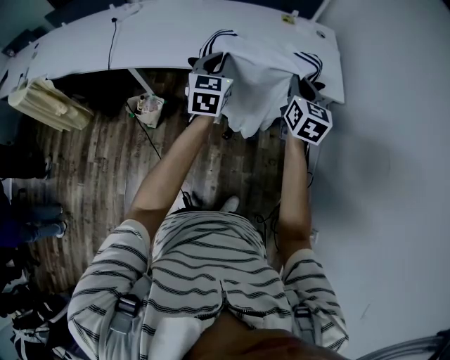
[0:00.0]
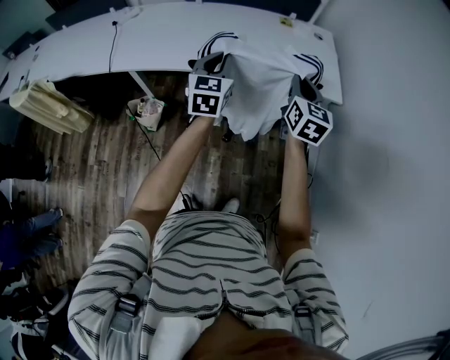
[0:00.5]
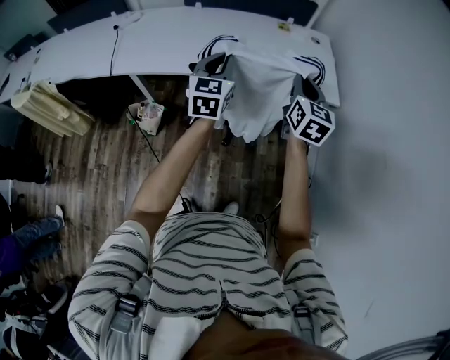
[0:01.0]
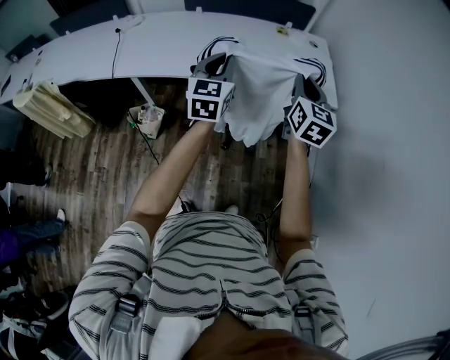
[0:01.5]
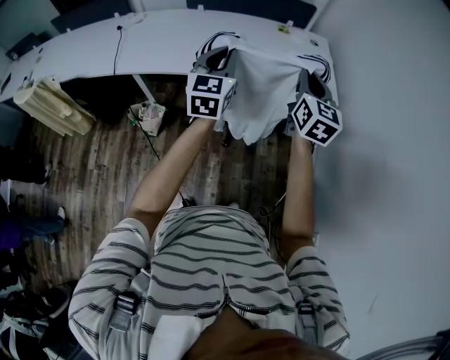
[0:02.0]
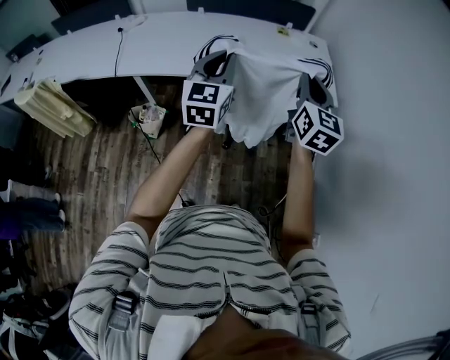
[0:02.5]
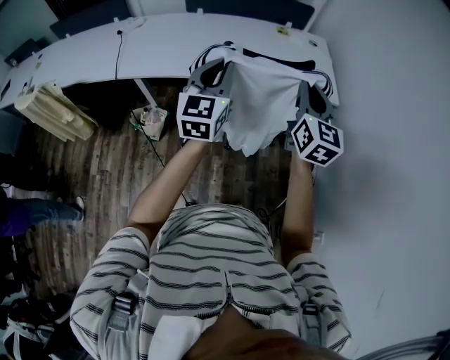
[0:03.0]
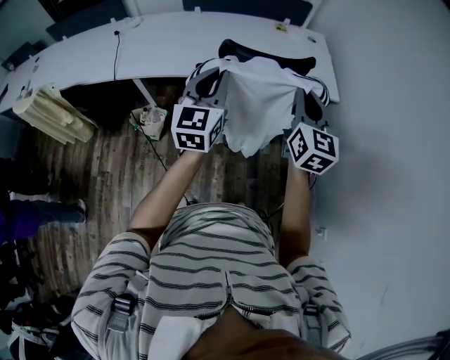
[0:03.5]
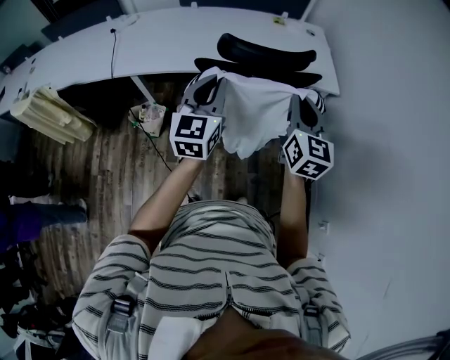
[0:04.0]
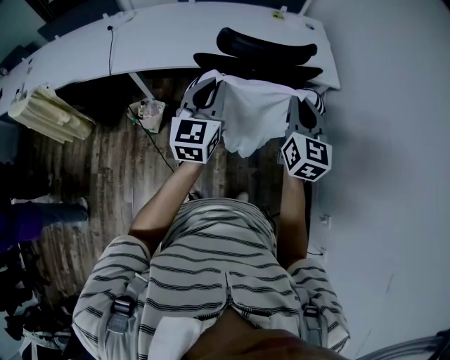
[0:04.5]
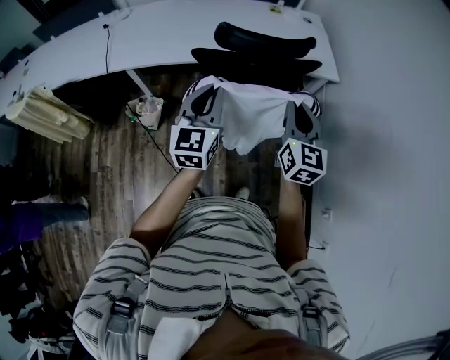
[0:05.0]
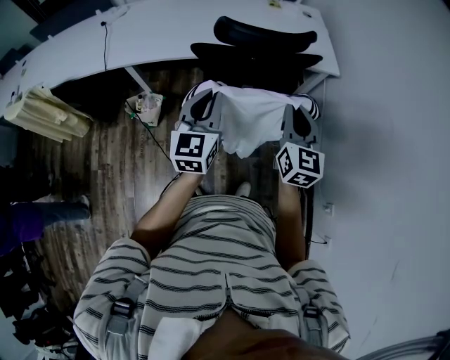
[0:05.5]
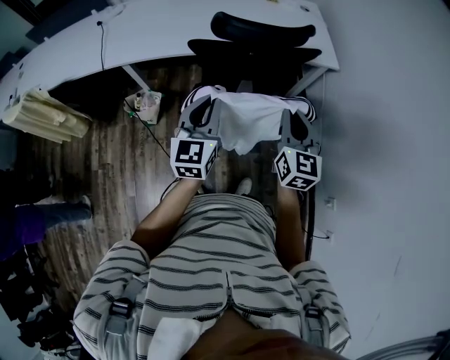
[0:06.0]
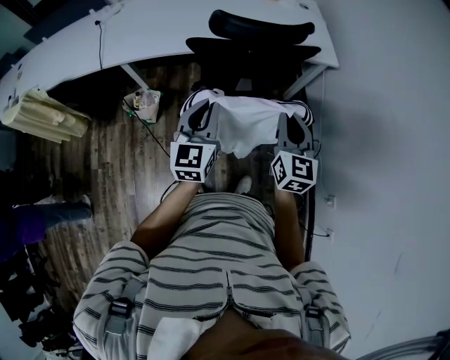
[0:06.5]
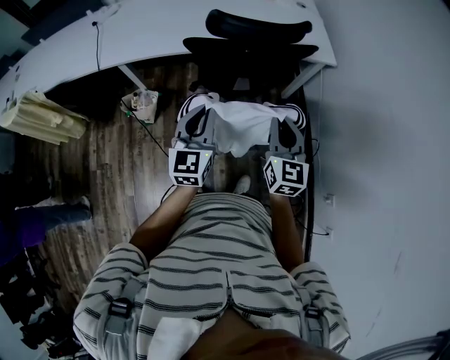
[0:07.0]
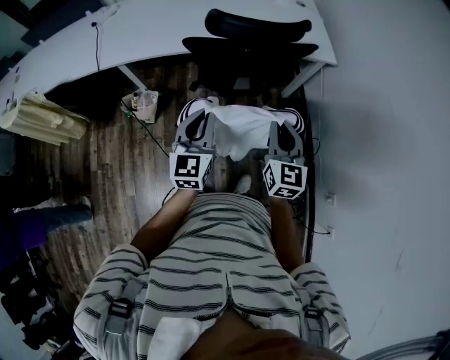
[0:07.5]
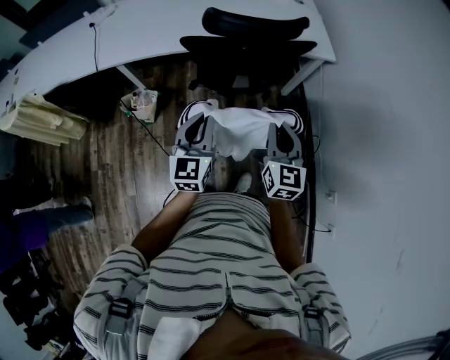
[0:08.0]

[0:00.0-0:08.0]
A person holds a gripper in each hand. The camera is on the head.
0:00.0 to 0:02.0: The grippers both shift upward and backward by approximately 10 cm.
0:02.0 to 0:04.0: Both grippers move backward, about 10 cm.
0:04.0 to 0:06.0: The two grippers go roughly 10 cm downward and backward.
0:06.0 to 0:08.0: The right gripper moves roughly 5 cm. Meanwhile the left gripper ends up approximately 5 cm from where it was.

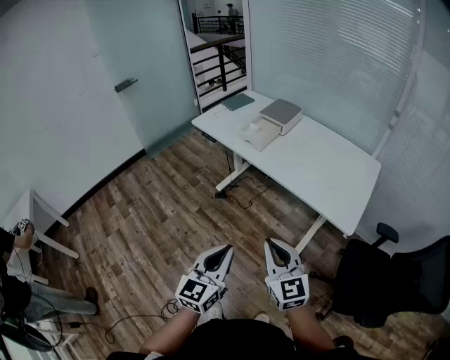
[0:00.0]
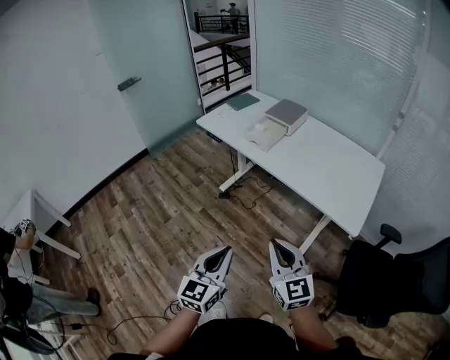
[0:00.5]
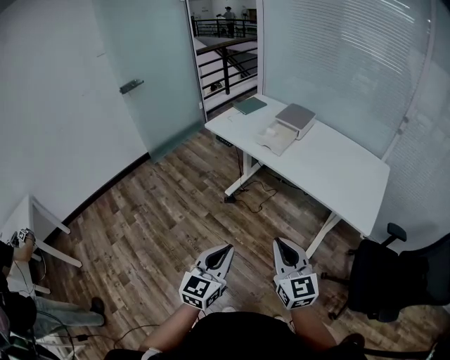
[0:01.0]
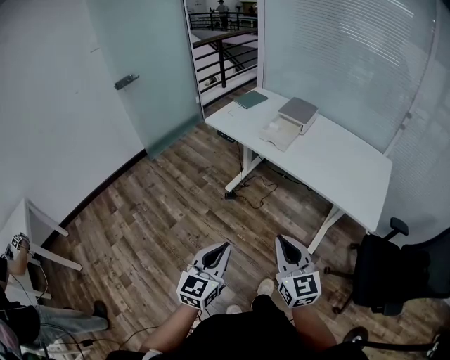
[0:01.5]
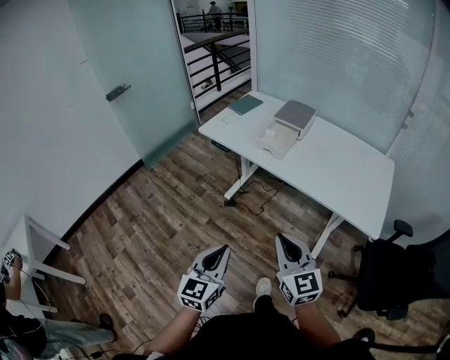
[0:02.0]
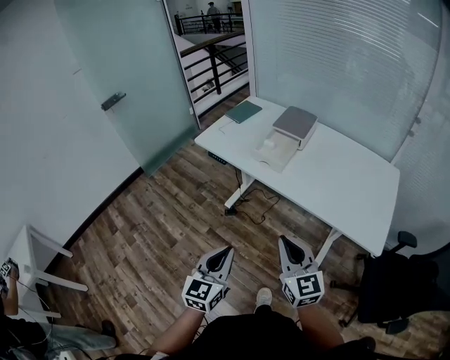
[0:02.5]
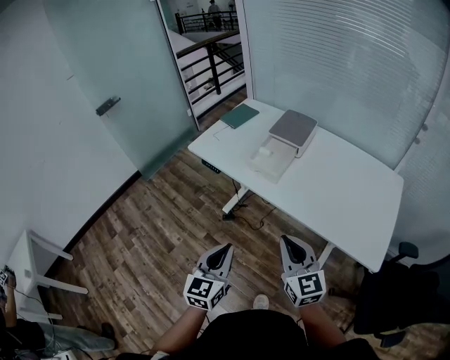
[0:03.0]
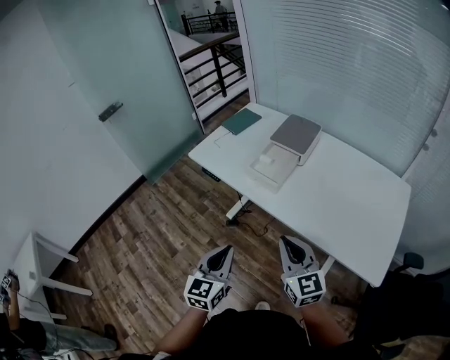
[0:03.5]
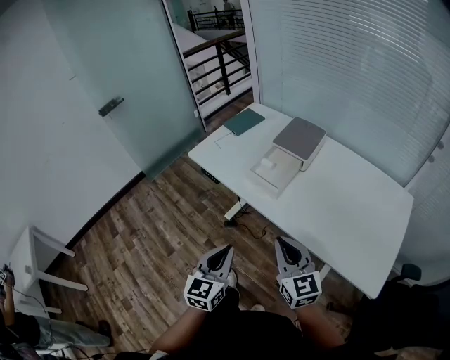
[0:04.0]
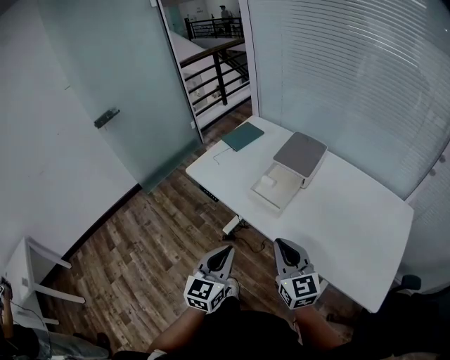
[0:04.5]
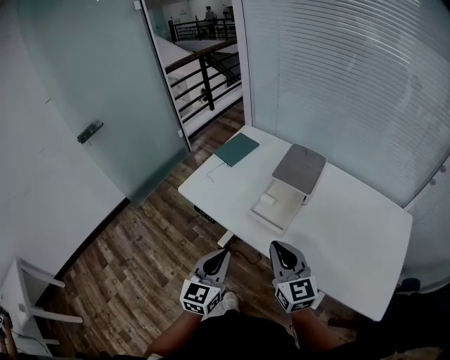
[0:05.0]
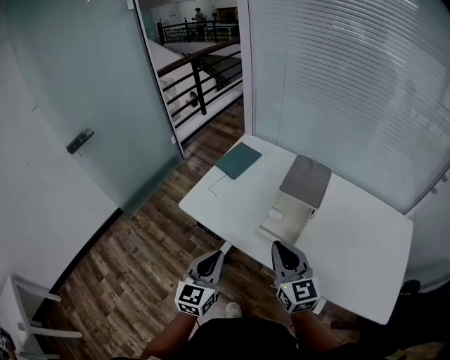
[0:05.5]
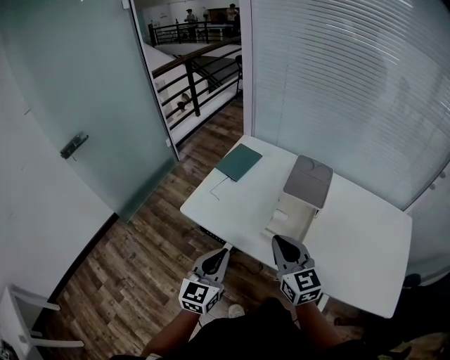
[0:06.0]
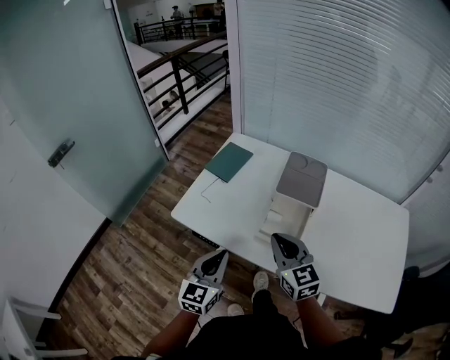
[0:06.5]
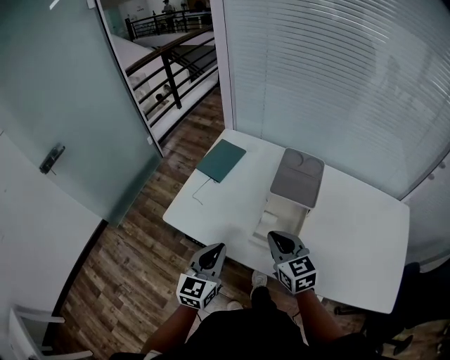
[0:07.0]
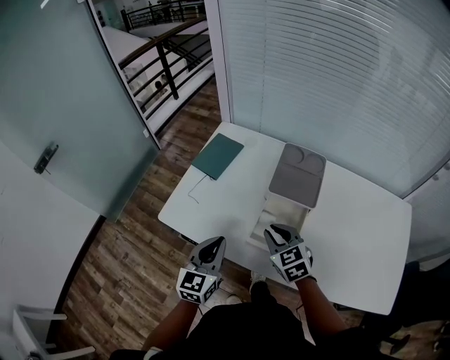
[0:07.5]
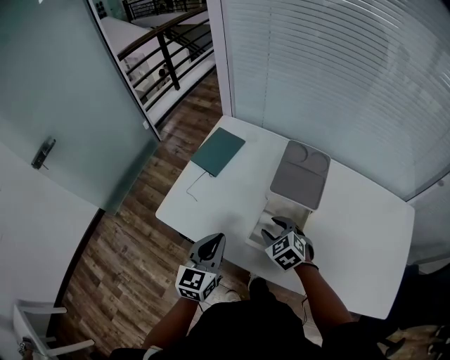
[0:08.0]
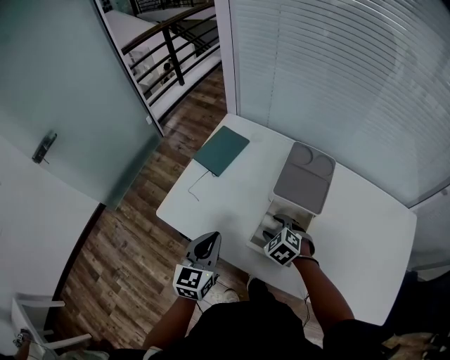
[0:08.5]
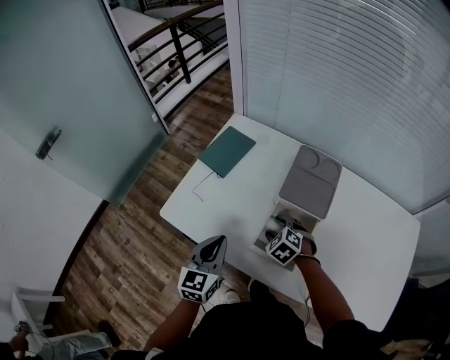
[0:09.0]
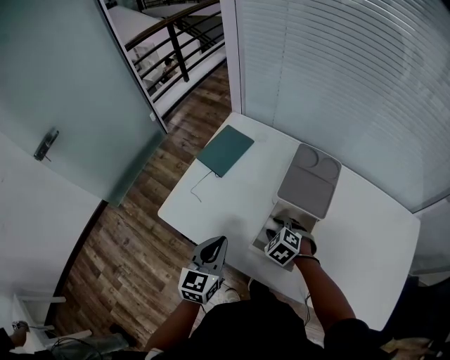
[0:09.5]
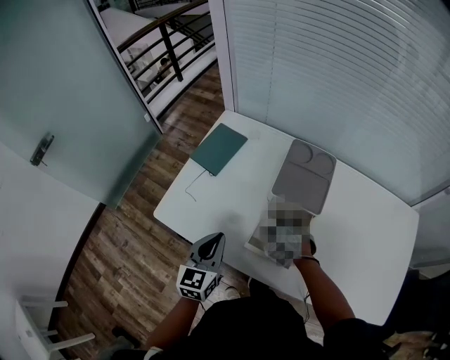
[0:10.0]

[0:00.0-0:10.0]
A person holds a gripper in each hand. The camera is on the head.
0:00.0 to 0:02.0: Both grippers travel together to the left and forward, about 20 cm.
0:02.0 to 0:04.0: The two grippers go approximately 25 cm forward.
0:04.0 to 0:06.0: The grippers both shift forward and to the left by approximately 30 cm.
0:06.0 to 0:08.0: The left gripper goes approximately 15 cm forward. Meanwhile the right gripper is displaced downward and forward by approximately 25 cm, points its fingers approximately 40 degrees further downward, and opens.
0:08.0 to 0:10.0: The right gripper shifts by approximately 5 cm.

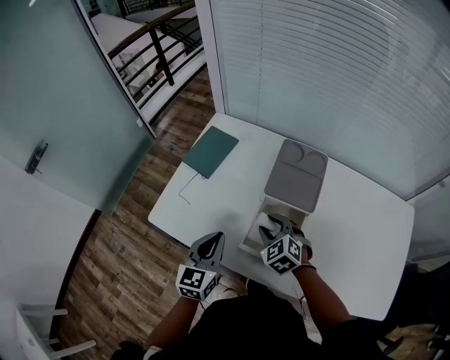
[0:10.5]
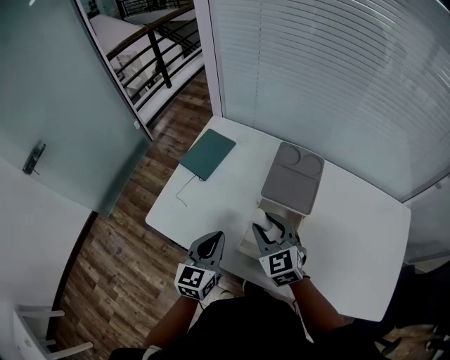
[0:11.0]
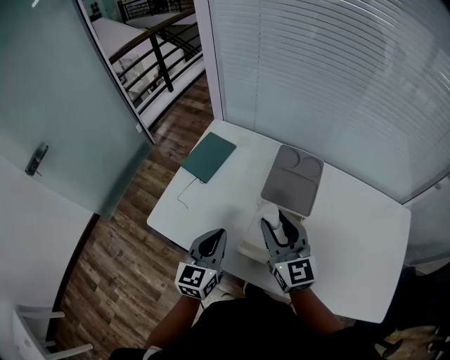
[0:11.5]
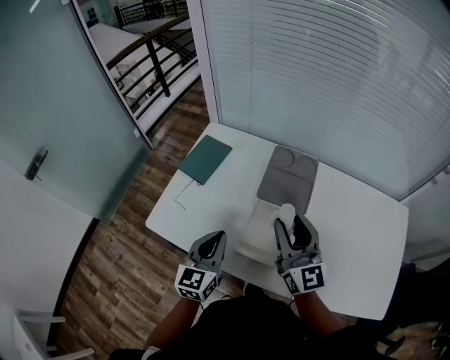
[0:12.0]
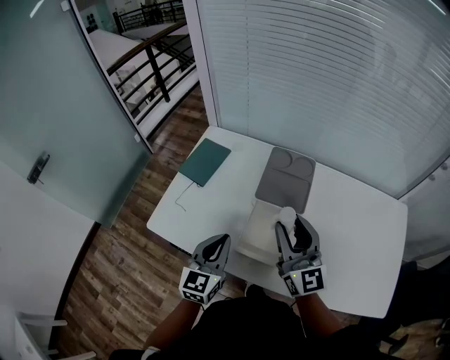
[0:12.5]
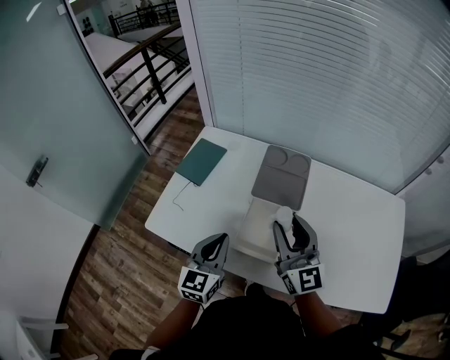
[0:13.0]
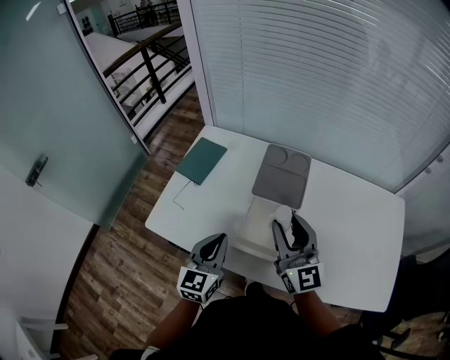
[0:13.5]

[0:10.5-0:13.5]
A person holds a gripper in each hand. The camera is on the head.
0:10.5 to 0:12.0: The right gripper goes approximately 20 cm upward, and tilts its fingers some 50 degrees upward.
0:12.0 to 0:13.5: The grippers move only a little.

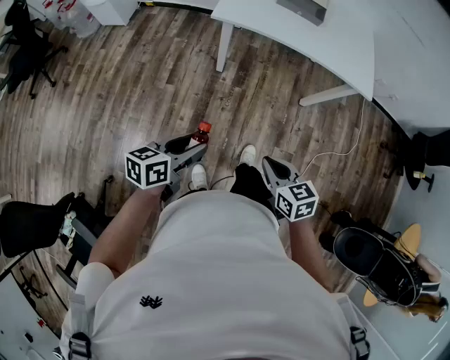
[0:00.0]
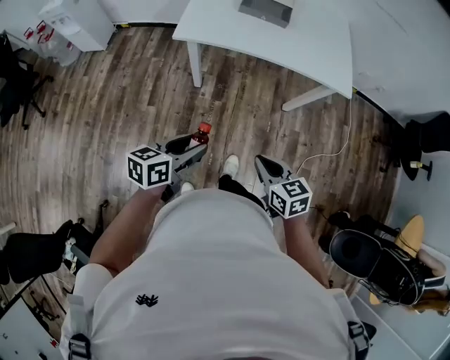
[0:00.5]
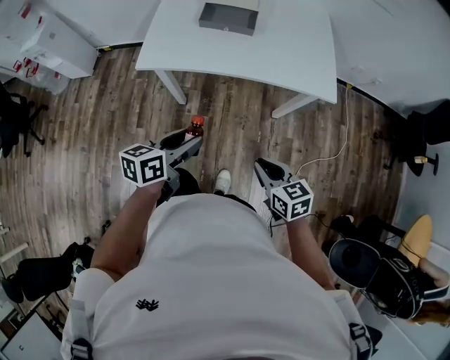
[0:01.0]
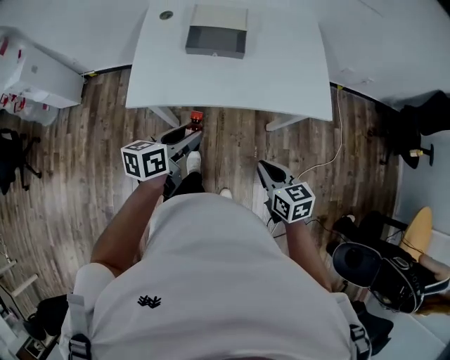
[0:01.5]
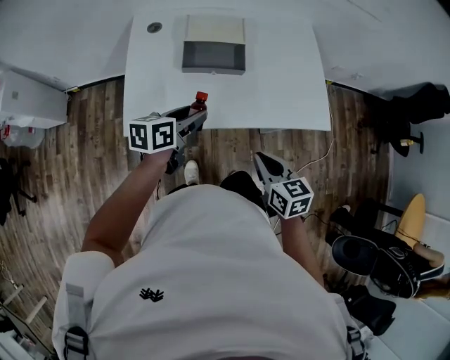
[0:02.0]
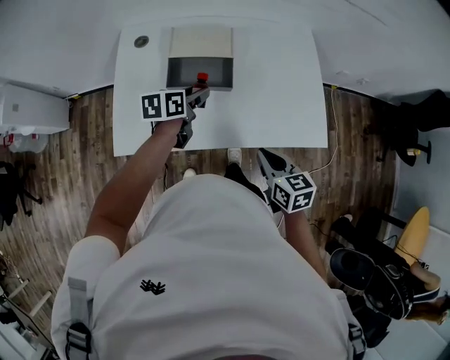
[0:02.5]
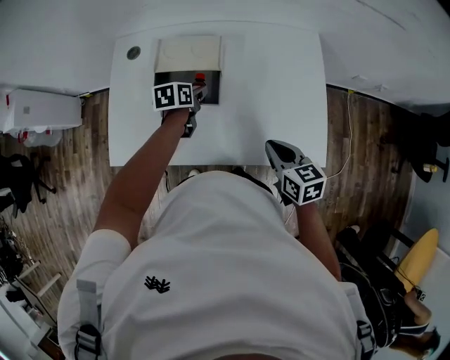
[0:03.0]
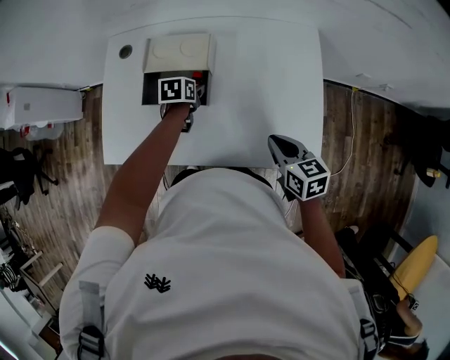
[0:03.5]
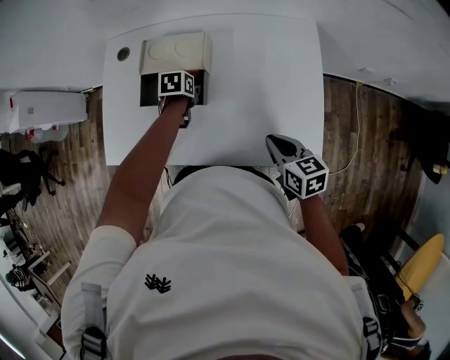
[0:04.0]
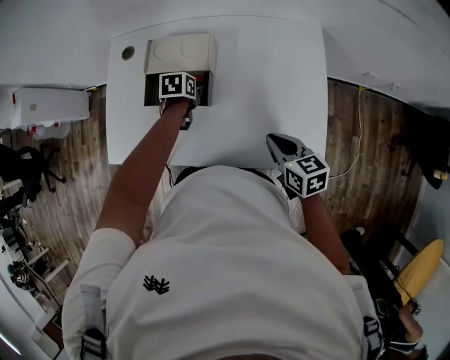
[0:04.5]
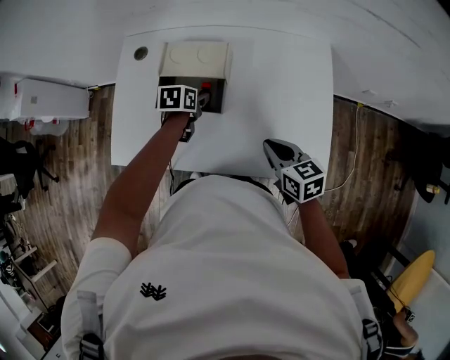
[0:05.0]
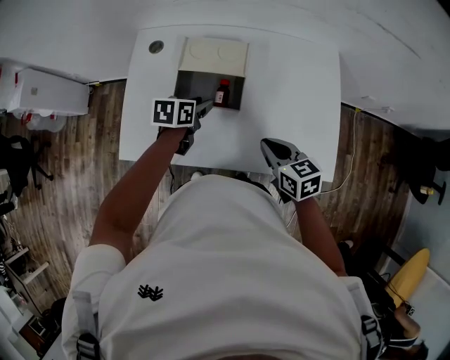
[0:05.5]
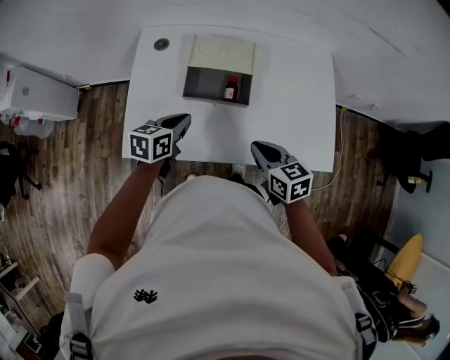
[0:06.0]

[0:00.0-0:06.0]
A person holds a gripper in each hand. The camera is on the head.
0:00.0 to 0:02.0: Both grippers travel together forward, approximately 50 cm. The right gripper rotates roughly 20 degrees.
0:02.0 to 0:04.0: The left gripper goes roughly 30 cm forward, downward and to the right, and tilts its fingers some 40 degrees downward, while the right gripper shifts roughly 25 cm to the right and forward.
0:04.0 to 0:06.0: The right gripper moves to the left, some 15 cm. The left gripper heads upward, to the left and backward, covering some 20 cm, angles its fingers upward, by about 40 degrees, and closes.
